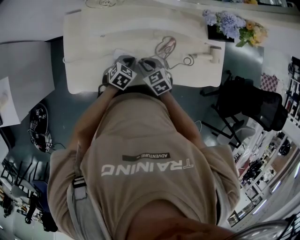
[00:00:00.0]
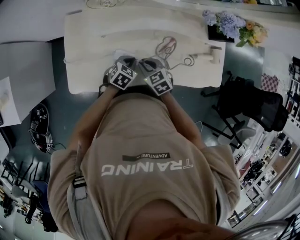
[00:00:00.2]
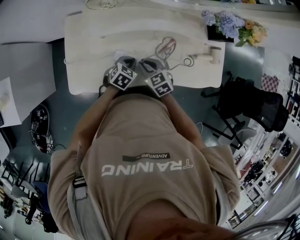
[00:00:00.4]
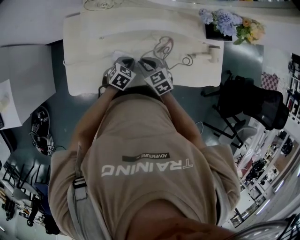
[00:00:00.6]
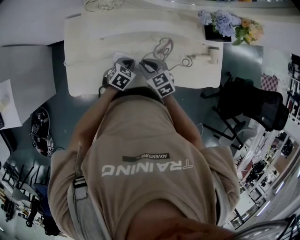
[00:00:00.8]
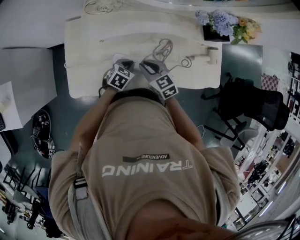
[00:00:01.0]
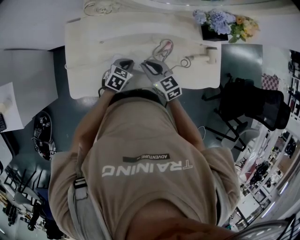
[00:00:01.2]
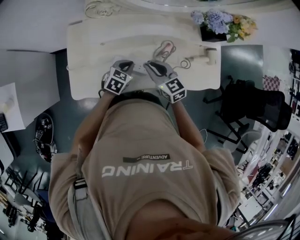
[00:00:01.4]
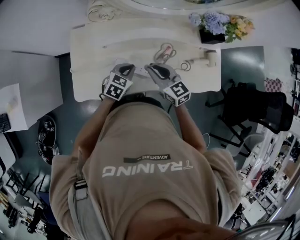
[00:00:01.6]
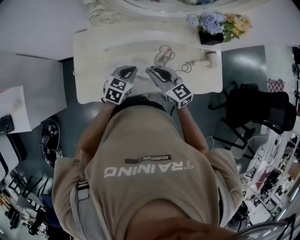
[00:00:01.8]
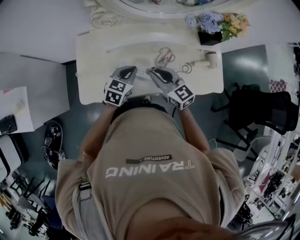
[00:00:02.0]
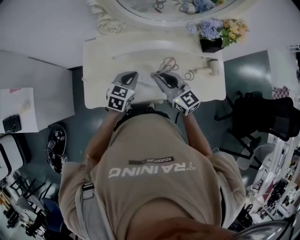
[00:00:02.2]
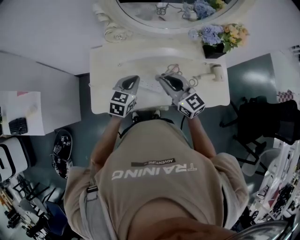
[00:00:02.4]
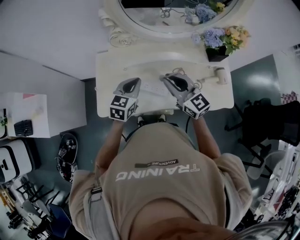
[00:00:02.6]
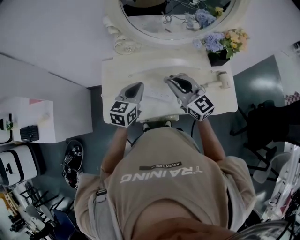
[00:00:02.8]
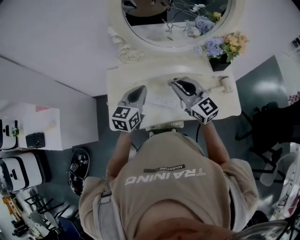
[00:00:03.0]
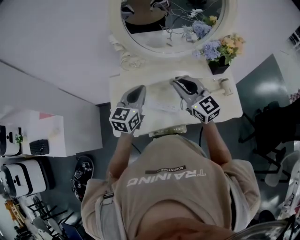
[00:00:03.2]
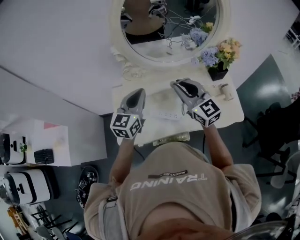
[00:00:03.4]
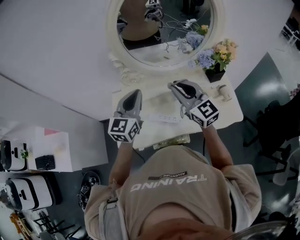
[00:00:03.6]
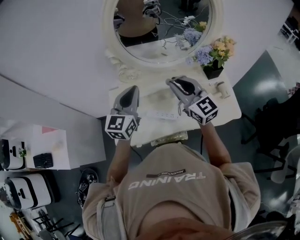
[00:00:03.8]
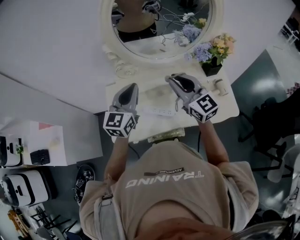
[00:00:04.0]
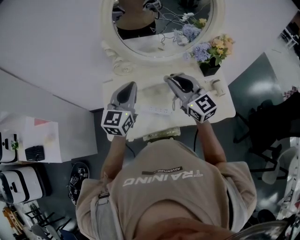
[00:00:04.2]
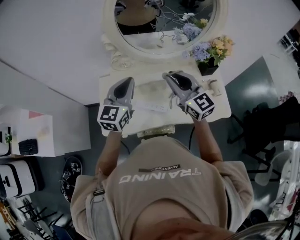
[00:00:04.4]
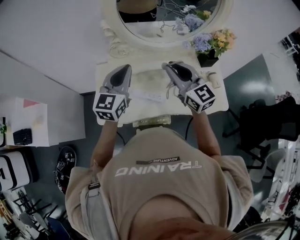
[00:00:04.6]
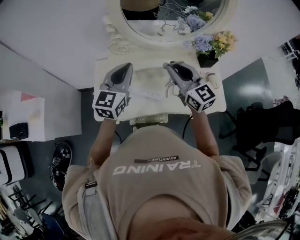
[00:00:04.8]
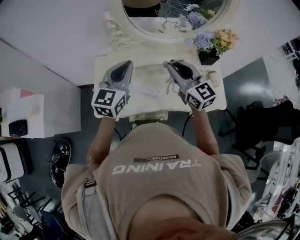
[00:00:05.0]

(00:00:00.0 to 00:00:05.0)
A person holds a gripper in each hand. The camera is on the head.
00:00:00.0 - 00:00:01.6: The left gripper heads upward, covering some 10 cm; the right gripper is displaced upward by roughly 15 cm, and rotates roughly 30 degrees.
00:00:01.6 - 00:00:03.4: Both grippers move upward, roughly 25 cm. The right gripper turns by some 30 degrees. Meanwhile the left gripper points its fingers about 30 degrees further upward.
00:00:03.4 - 00:00:05.0: There are only small adjustments of the grippers.

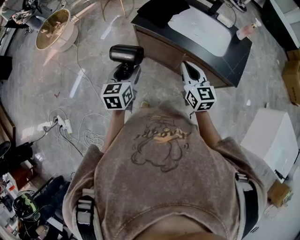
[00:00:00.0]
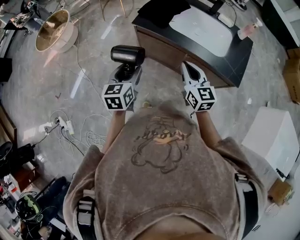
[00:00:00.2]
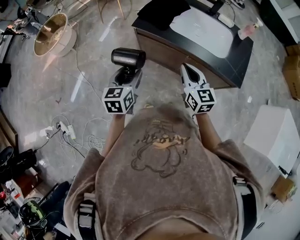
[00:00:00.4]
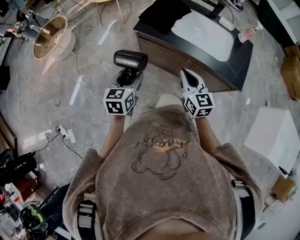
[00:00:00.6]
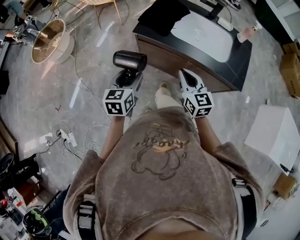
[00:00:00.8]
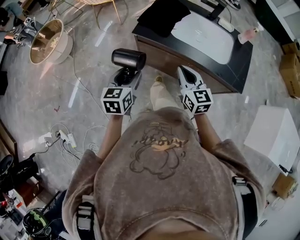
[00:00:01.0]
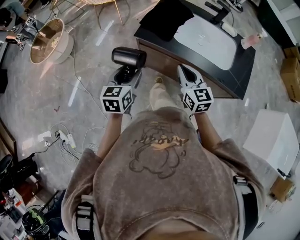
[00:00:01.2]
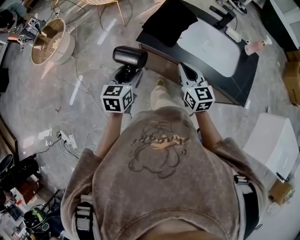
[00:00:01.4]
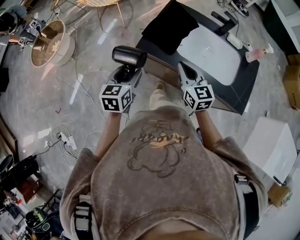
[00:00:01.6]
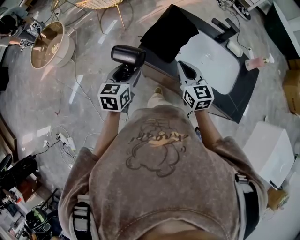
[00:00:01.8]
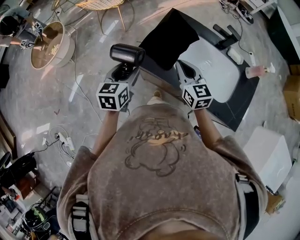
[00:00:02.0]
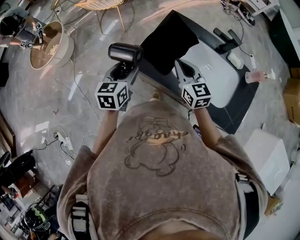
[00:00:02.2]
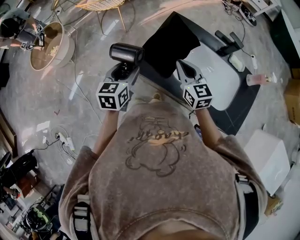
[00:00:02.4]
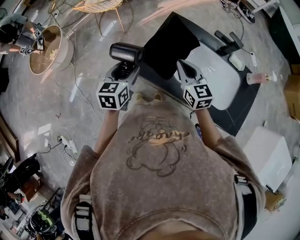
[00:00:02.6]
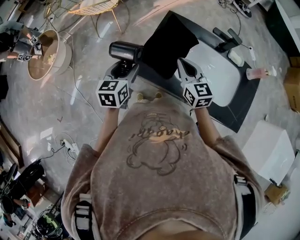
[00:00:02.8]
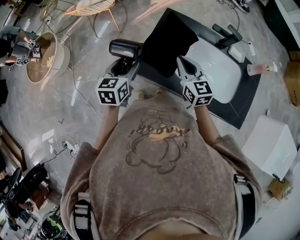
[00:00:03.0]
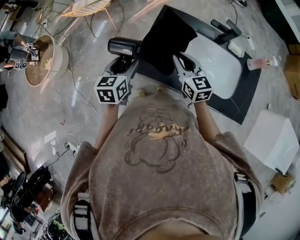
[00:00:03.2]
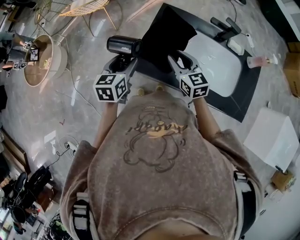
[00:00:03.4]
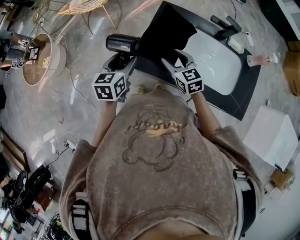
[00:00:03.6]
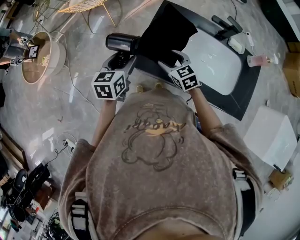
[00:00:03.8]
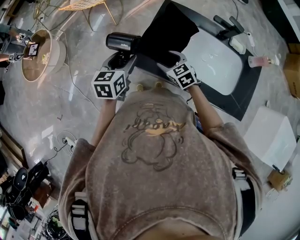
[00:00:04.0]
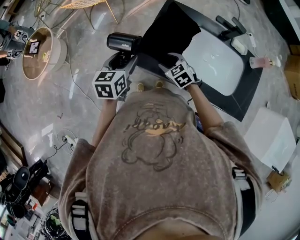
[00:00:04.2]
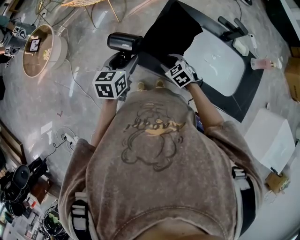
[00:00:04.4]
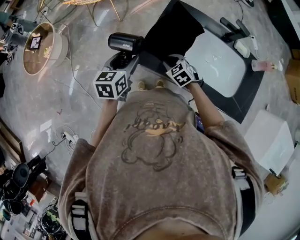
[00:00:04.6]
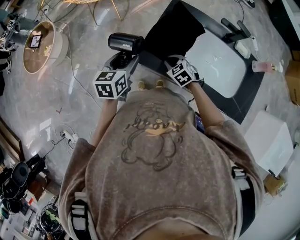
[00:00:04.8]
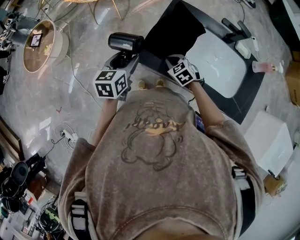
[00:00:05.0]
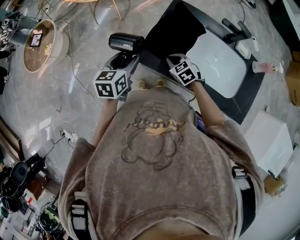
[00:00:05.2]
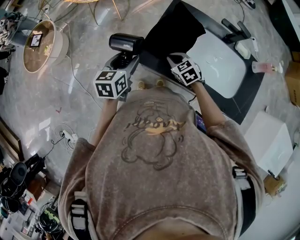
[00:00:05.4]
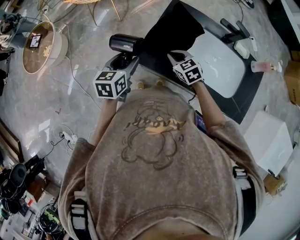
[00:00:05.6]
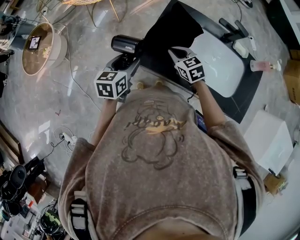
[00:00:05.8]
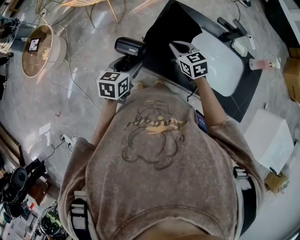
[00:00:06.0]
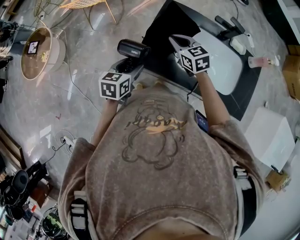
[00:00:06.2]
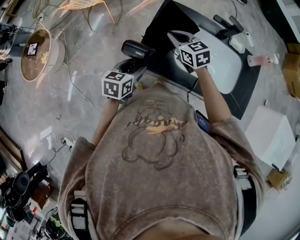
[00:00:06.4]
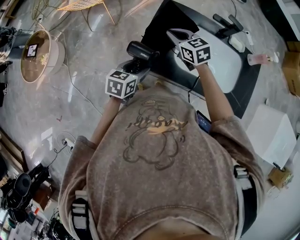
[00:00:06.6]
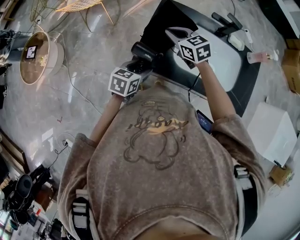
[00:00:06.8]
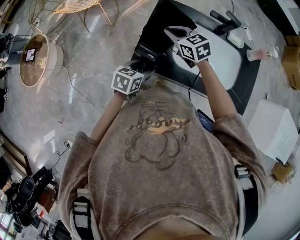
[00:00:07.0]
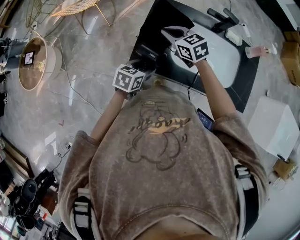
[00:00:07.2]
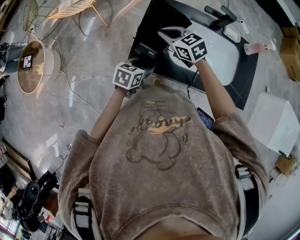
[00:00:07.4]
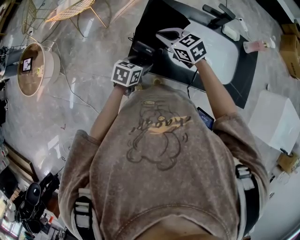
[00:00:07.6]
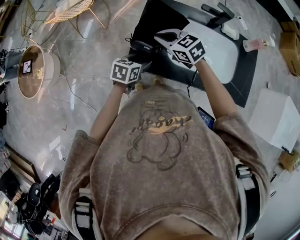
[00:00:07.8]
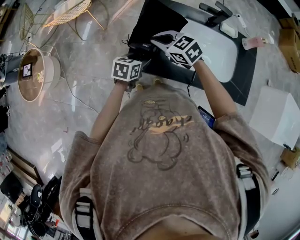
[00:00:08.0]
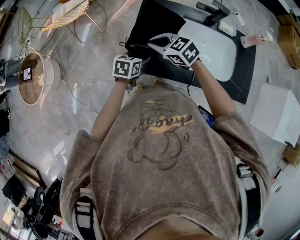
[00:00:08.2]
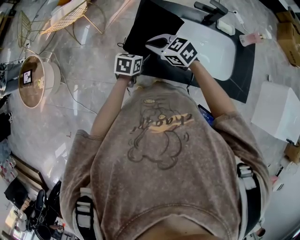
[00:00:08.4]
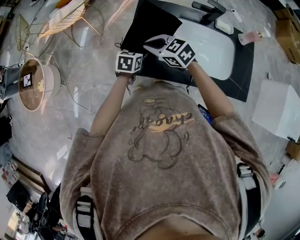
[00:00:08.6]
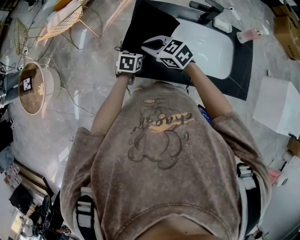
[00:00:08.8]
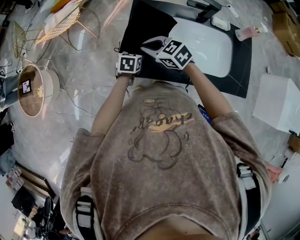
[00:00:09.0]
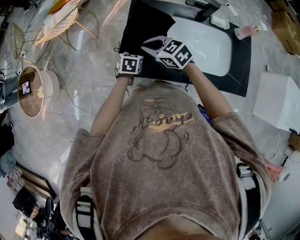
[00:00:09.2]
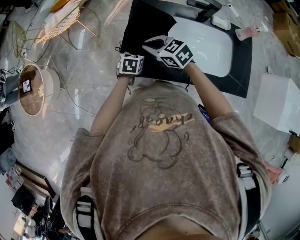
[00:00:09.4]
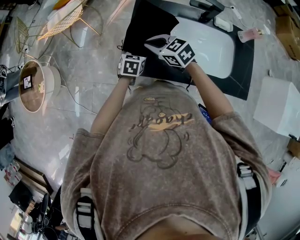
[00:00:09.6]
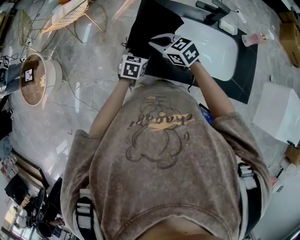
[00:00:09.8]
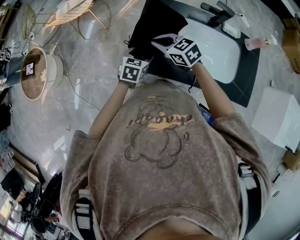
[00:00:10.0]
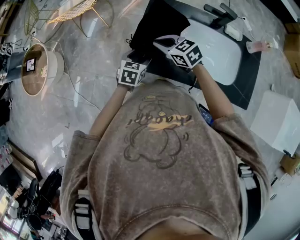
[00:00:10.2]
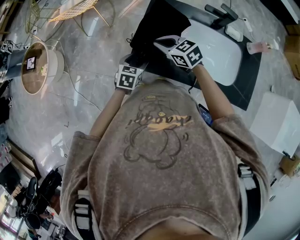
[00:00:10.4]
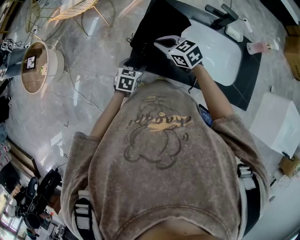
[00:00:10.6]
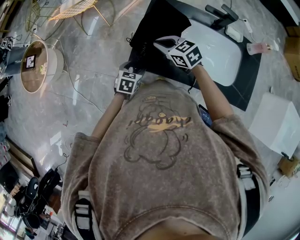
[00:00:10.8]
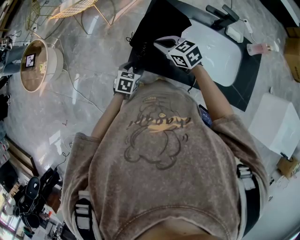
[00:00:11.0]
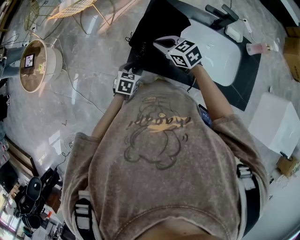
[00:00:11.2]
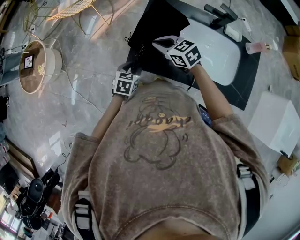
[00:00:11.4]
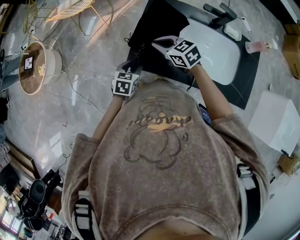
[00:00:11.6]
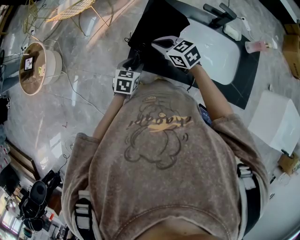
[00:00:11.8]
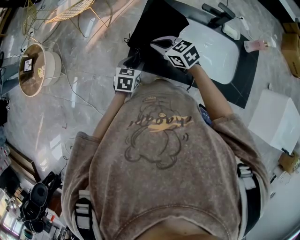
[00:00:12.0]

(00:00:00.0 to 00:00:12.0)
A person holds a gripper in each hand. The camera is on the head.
00:00:00.0 - 00:00:01.6: Both grippers move forward, about 20 cm.
00:00:01.6 - 00:00:03.0: Both grippers move forward, some 20 cm.
00:00:03.0 - 00:00:04.4: The right gripper is displaced downward by roughly 20 cm, tips its fingers downward by approximately 30 degrees, and opens its fingers.
00:00:04.4 - 00:00:06.0: The right gripper is displaced upward and forward by about 10 cm, changes its angle by roughly 20 degrees, and closes its fingers.
00:00:06.0 - 00:00:07.6: The left gripper is displaced to the right and downward by about 10 cm, and swivels about 20 degrees.
00:00:07.6 - 00:00:09.0: The left gripper goes about 10 cm forward and downward.
00:00:09.0 - 00:00:10.4: The left gripper is displaced backward and to the left by approximately 10 cm.
00:00:10.4 - 00:00:12.0: There are only small adjustments of the grippers.

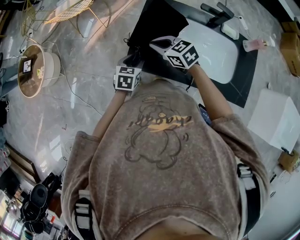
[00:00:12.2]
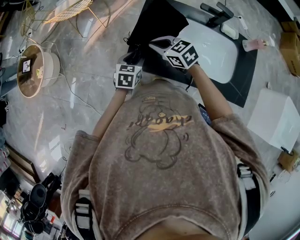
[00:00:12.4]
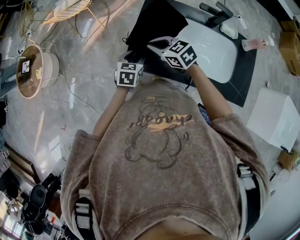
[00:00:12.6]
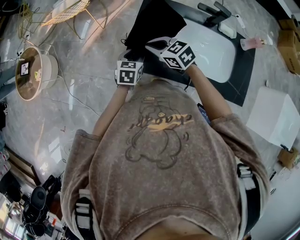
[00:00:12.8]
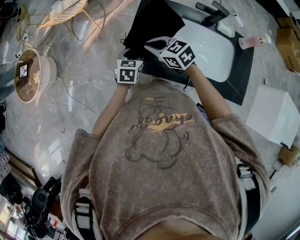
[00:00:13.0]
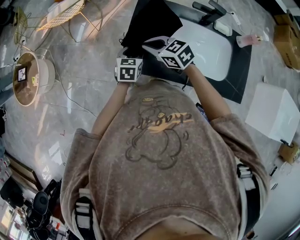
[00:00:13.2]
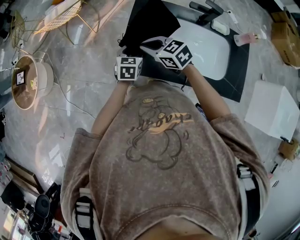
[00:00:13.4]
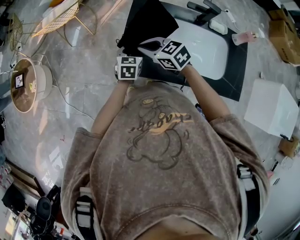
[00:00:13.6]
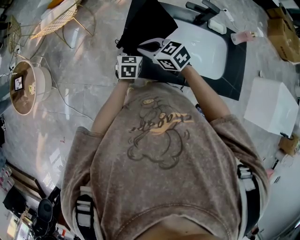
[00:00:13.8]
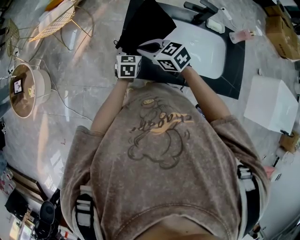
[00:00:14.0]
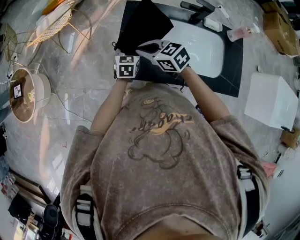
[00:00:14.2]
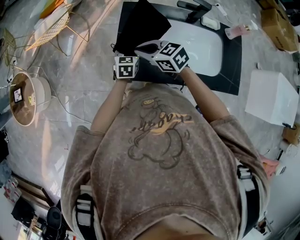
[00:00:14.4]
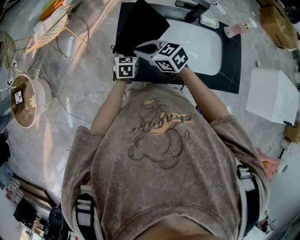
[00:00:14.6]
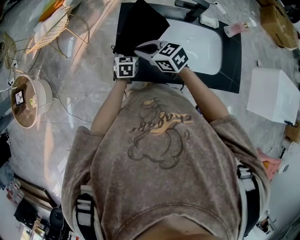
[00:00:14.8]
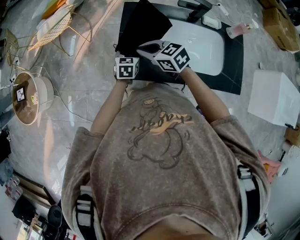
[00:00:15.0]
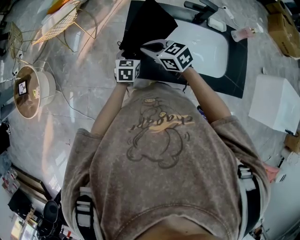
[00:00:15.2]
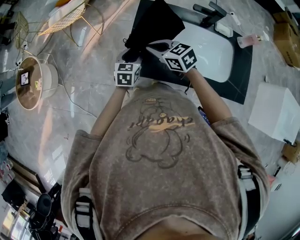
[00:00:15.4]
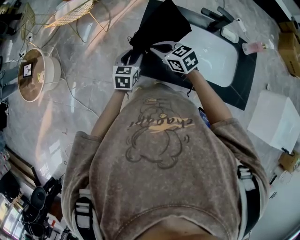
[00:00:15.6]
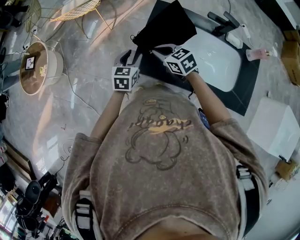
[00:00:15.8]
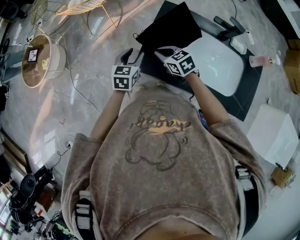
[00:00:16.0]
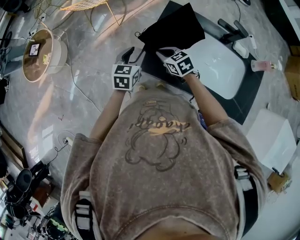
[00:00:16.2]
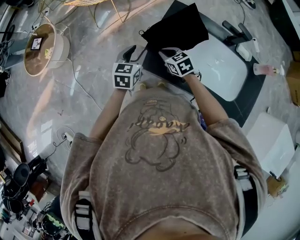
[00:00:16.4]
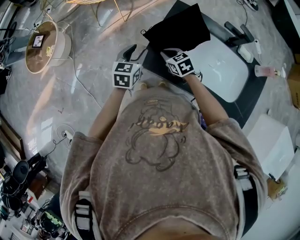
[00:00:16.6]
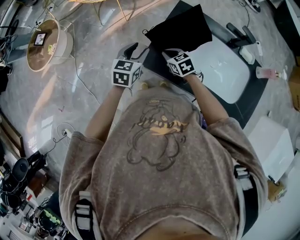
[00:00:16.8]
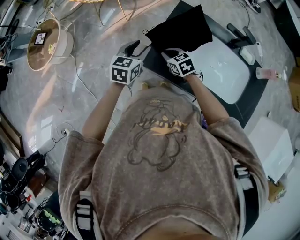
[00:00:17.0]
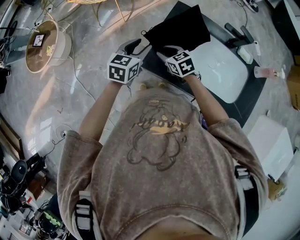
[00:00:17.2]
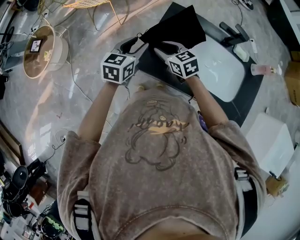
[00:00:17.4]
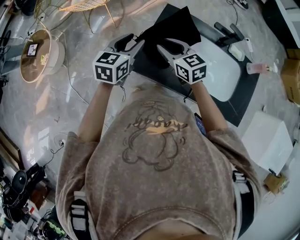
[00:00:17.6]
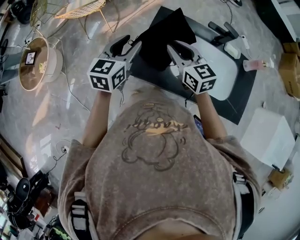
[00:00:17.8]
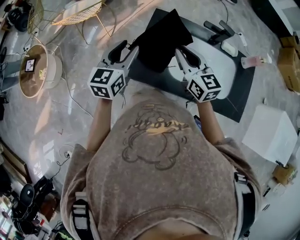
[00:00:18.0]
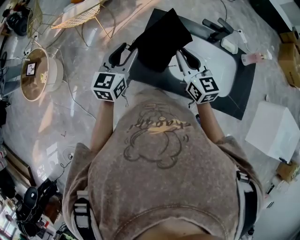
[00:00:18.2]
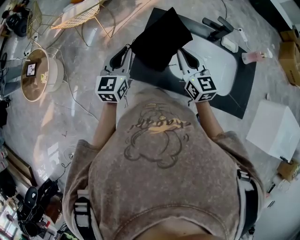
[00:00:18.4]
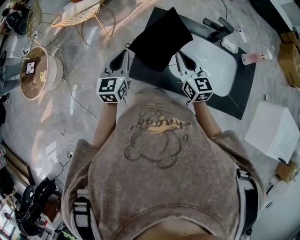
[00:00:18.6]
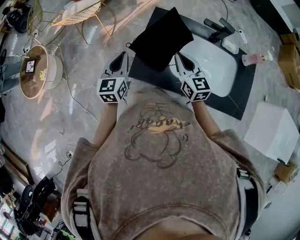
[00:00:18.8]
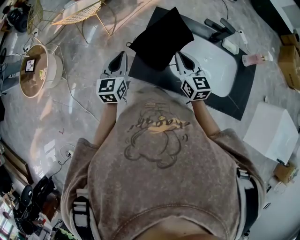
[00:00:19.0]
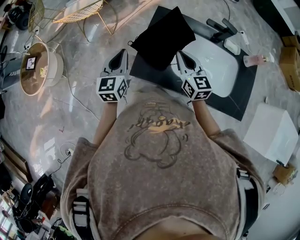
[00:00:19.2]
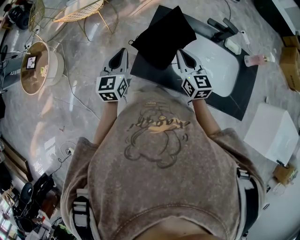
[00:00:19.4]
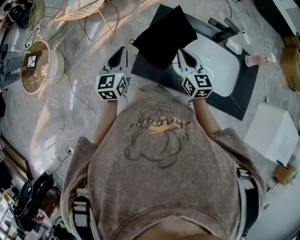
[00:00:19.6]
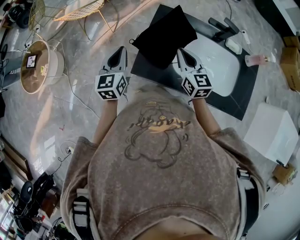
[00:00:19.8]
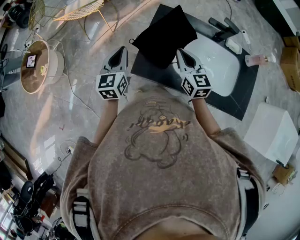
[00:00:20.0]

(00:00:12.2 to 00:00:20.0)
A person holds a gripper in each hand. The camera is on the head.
00:00:12.2 - 00:00:13.8: The left gripper travels to the right and forward by some 10 cm.
00:00:13.8 - 00:00:15.4: There are only small adjustments of the grippers.
00:00:15.4 - 00:00:16.8: The left gripper heads to the left and upward, covering approximately 10 cm. The right gripper moves downward, about 10 cm.
00:00:16.8 - 00:00:18.4: The right gripper moves upward and to the right, approximately 25 cm, tilts its fingers about 30 degrees upward, and opens, then closes again. Meanwhile the left gripper shifts approximately 10 cm upward, and closes its fingers.
00:00:18.4 - 00:00:20.0: The left gripper changes place by approximately 5 cm.
